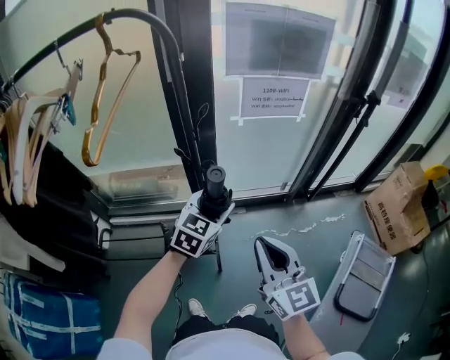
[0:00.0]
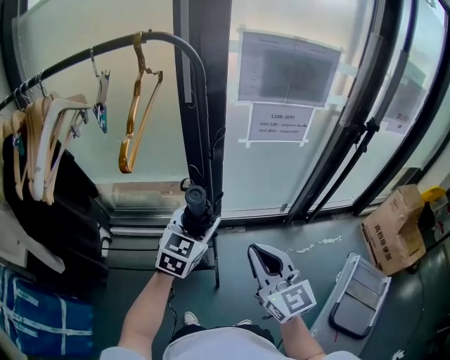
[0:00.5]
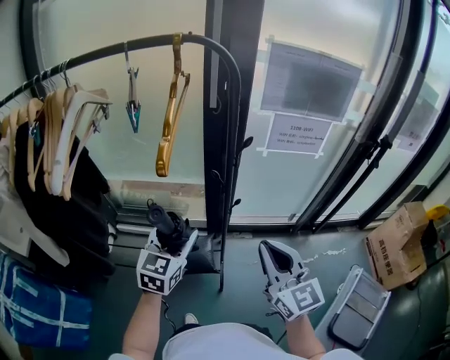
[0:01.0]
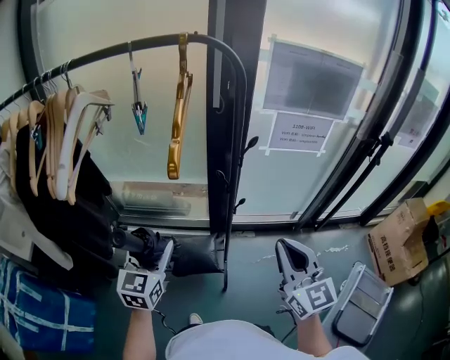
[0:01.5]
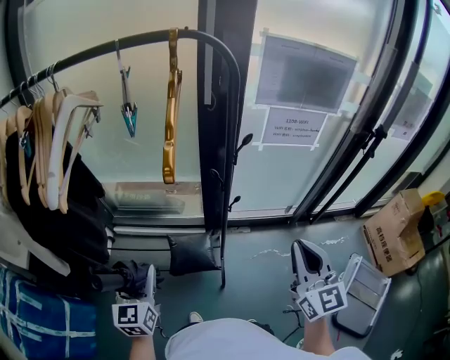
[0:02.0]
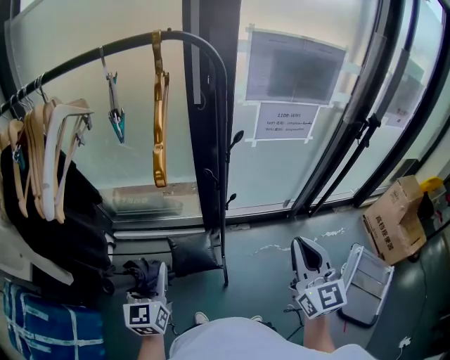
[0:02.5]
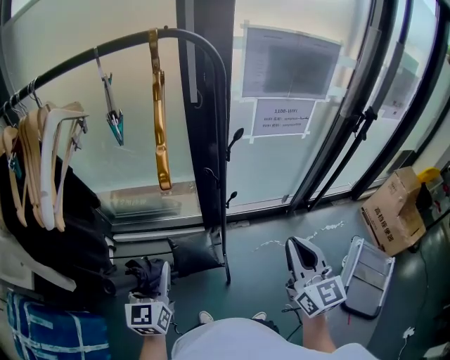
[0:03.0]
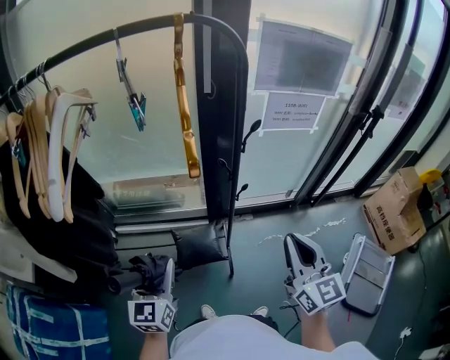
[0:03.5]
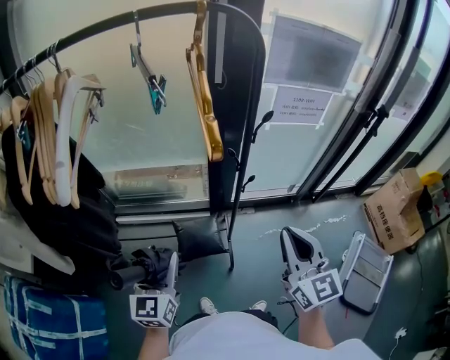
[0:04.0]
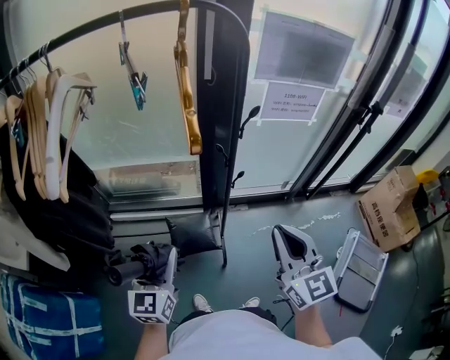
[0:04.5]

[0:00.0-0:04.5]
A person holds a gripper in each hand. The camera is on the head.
0:00.0 to 0:02.0: The left gripper goes some 35 cm to the left and backward, and swivels approximately 40 degrees, while the right gripper moves upward, about 5 cm.
0:02.0 to 0:04.5: The right gripper travels to the left by approximately 10 cm.

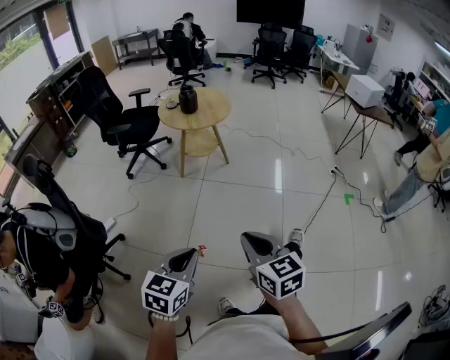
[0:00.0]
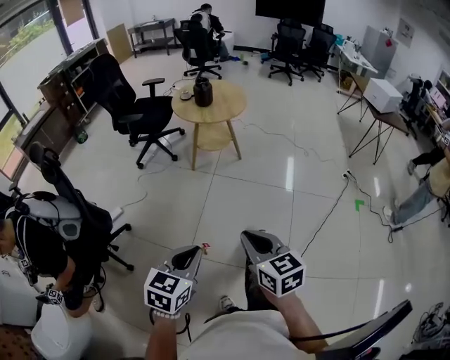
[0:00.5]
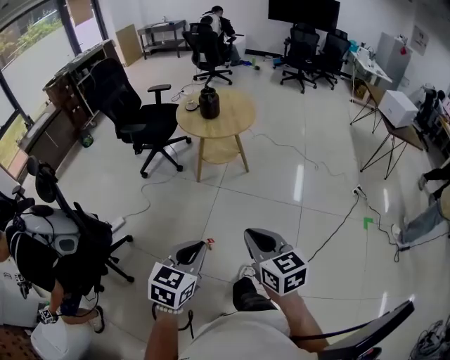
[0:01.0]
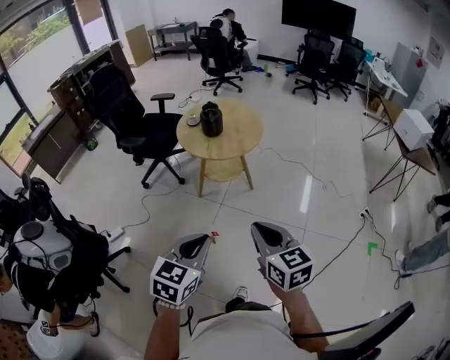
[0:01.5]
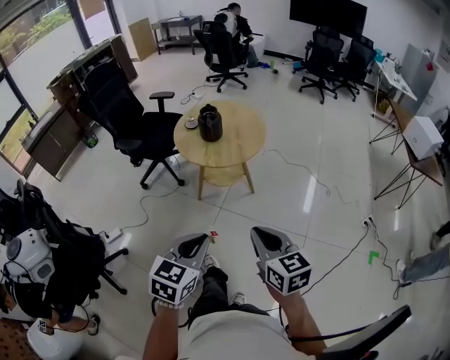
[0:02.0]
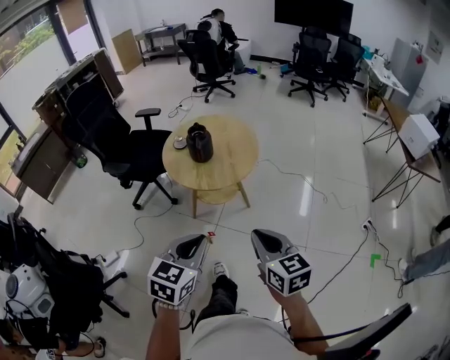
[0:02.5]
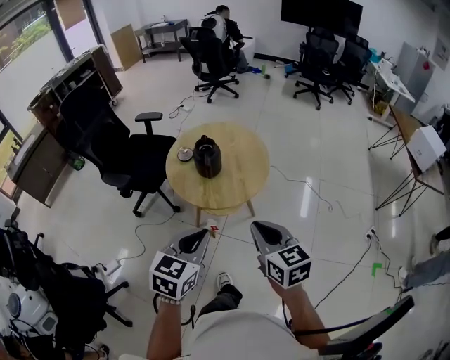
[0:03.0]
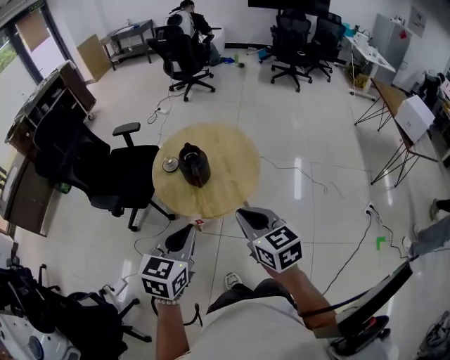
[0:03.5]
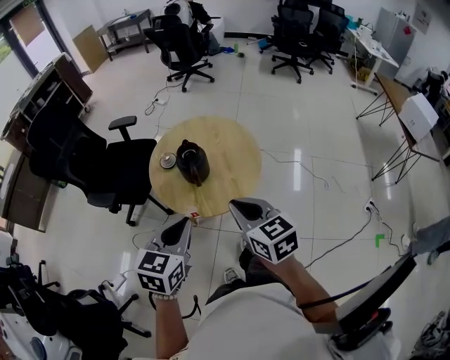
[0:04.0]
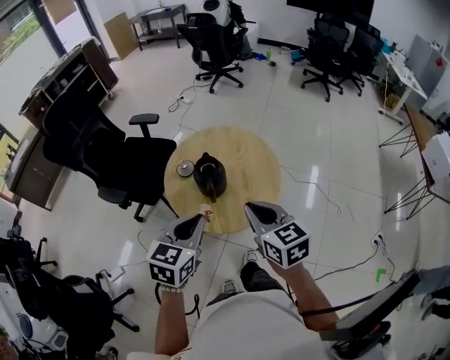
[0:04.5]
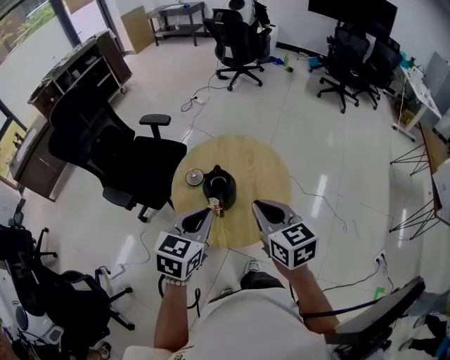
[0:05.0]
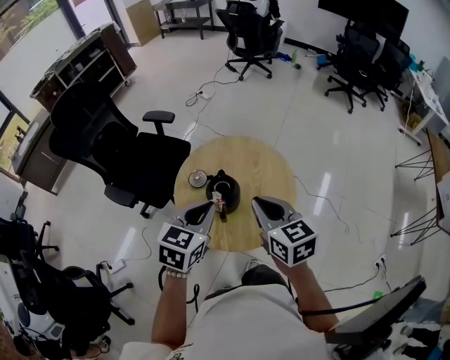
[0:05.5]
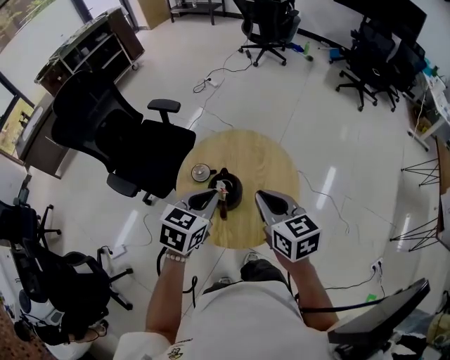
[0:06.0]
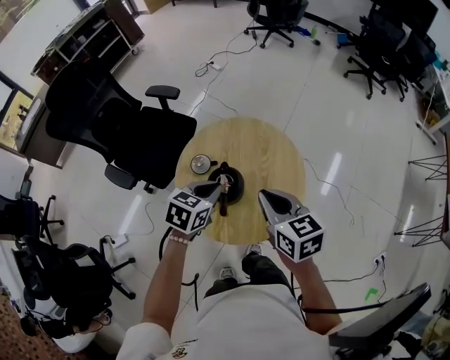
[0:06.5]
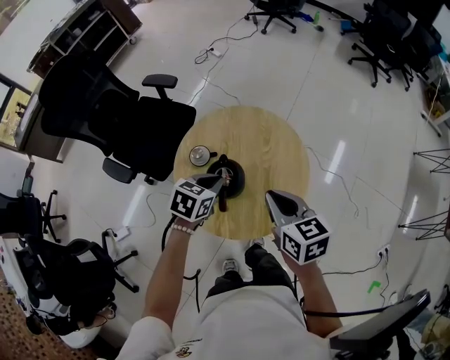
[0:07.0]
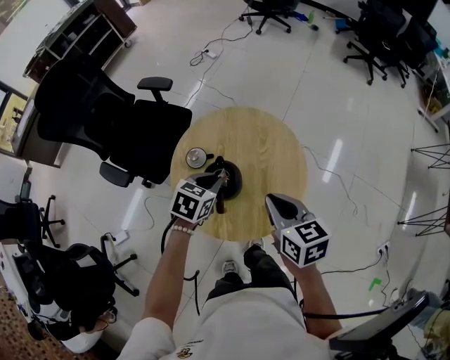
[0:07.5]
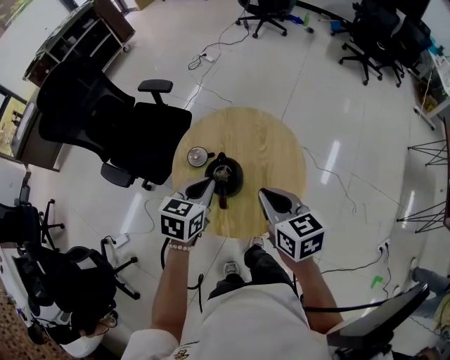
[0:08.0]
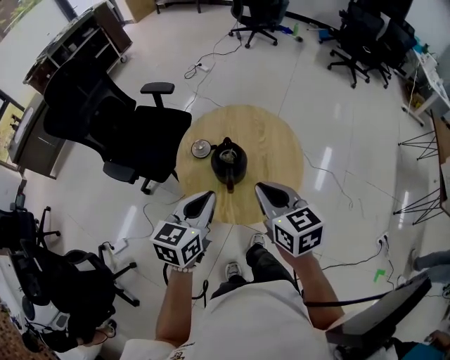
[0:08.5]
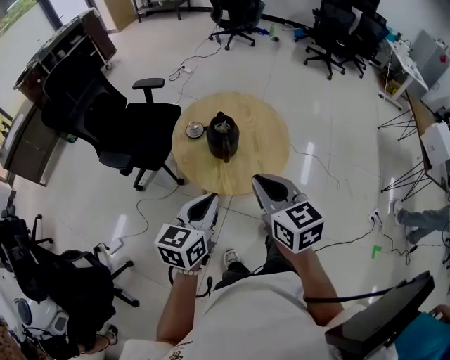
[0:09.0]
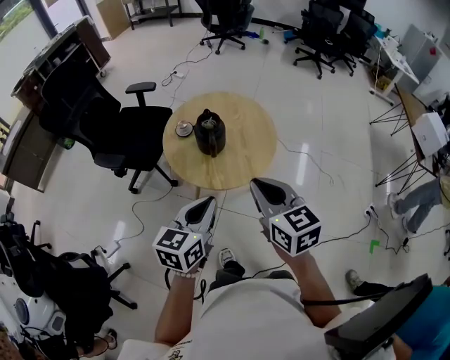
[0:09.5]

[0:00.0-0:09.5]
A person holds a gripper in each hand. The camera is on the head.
0:00.0 to 0:02.0: Both grippers are carried forward, some 40 cm.
0:02.0 to 0:04.0: The two grippers go some 35 cm forward.
0:04.0 to 0:05.5: Both grippers travel together forward, roughly 20 cm.
0:05.5 to 0:07.5: The right gripper moves downward, some 10 cm; the left gripper heads downward and forward, covering approximately 20 cm, and swivels roughly 20 degrees.
0:07.5 to 0:09.5: The left gripper heads backward and upward, covering some 35 cm, and tips its fingers upward by roughly 30 degrees. The right gripper goes roughly 25 cm backward.

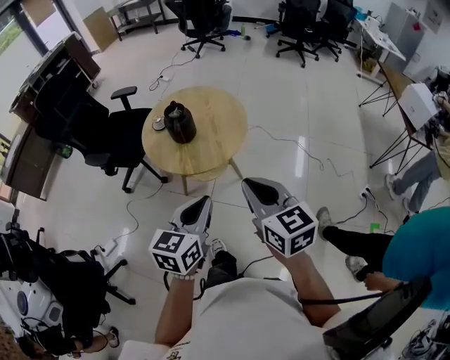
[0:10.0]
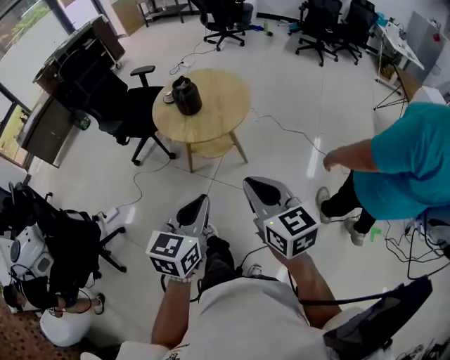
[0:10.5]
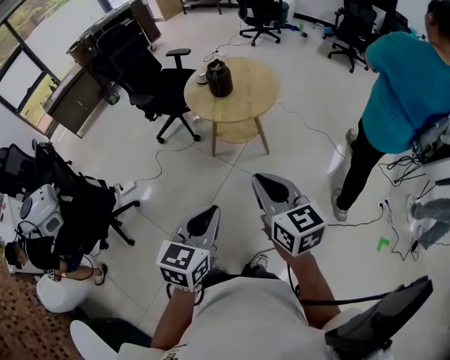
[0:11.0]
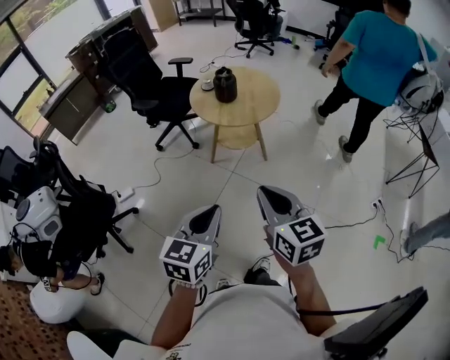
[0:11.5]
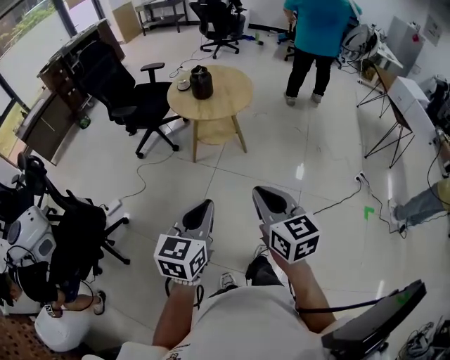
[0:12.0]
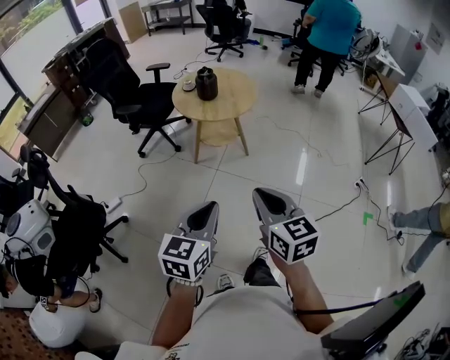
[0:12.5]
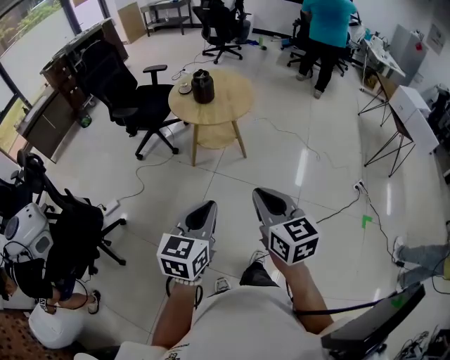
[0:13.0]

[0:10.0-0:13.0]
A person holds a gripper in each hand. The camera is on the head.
0:10.0 to 0:11.5: The two grippers go roughly 30 cm backward.
0:11.5 to 0:13.0: The right gripper travels backward by approximately 5 cm.

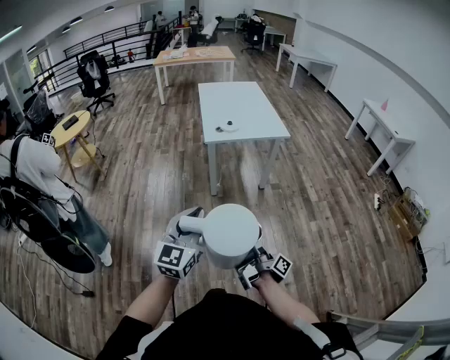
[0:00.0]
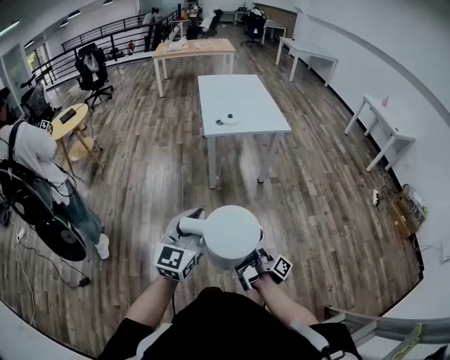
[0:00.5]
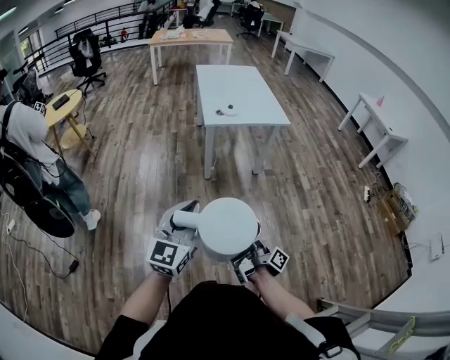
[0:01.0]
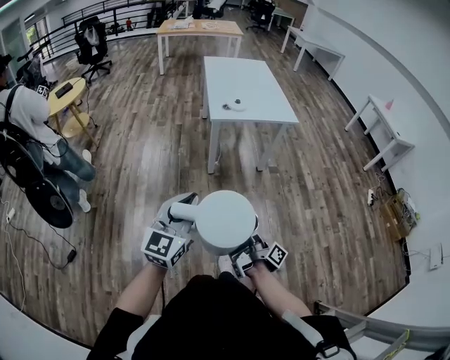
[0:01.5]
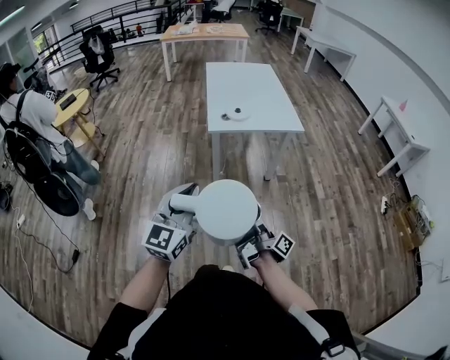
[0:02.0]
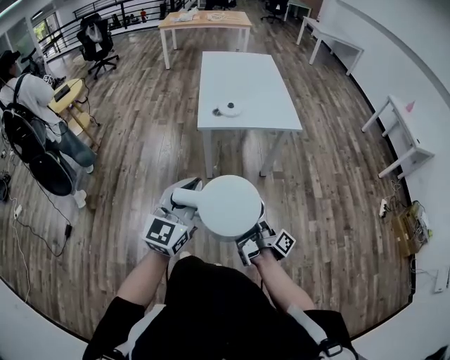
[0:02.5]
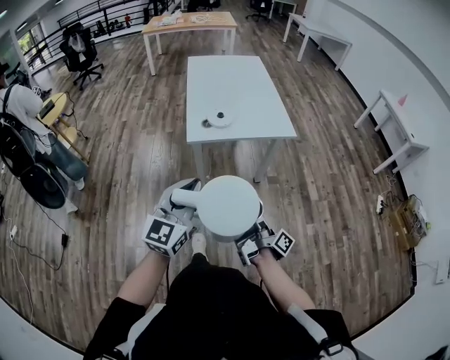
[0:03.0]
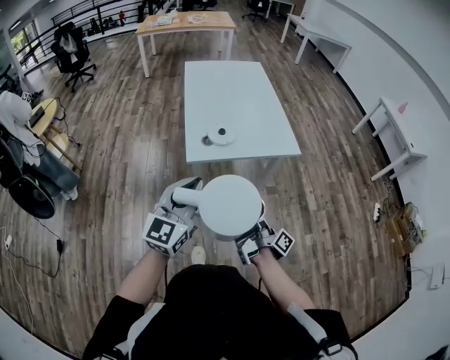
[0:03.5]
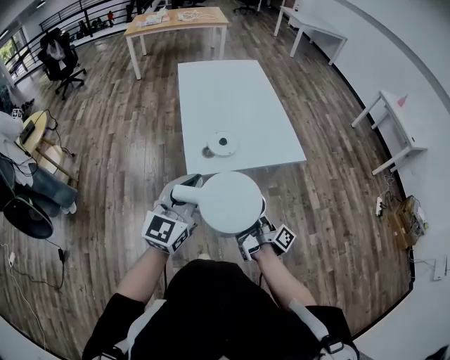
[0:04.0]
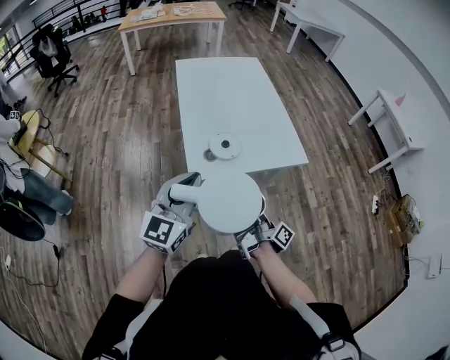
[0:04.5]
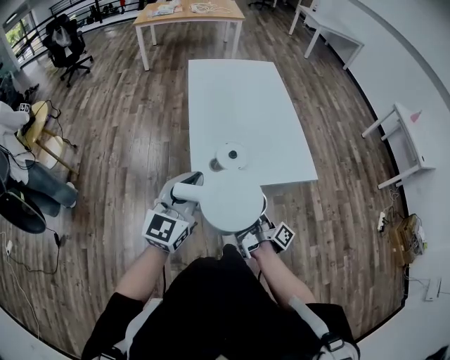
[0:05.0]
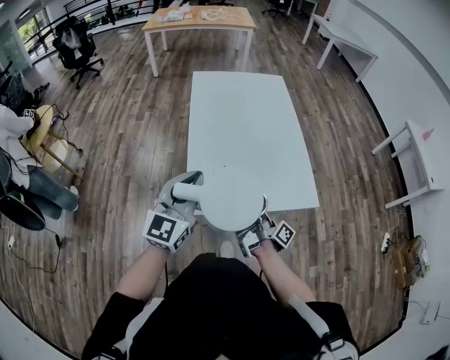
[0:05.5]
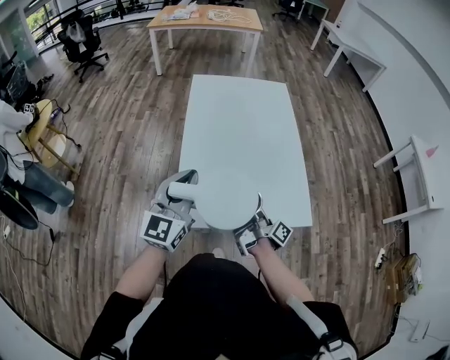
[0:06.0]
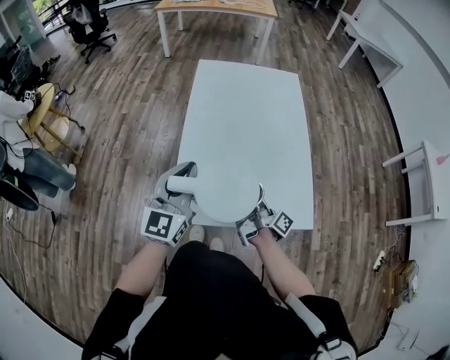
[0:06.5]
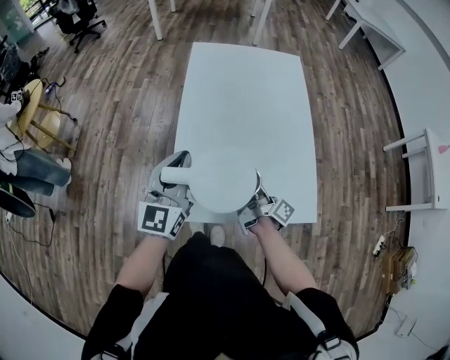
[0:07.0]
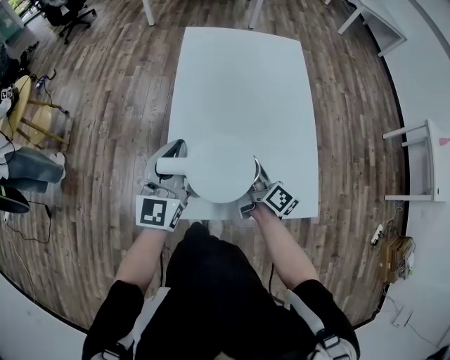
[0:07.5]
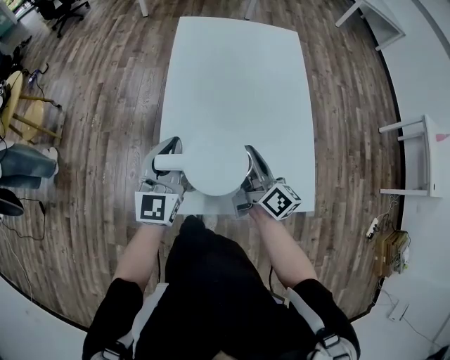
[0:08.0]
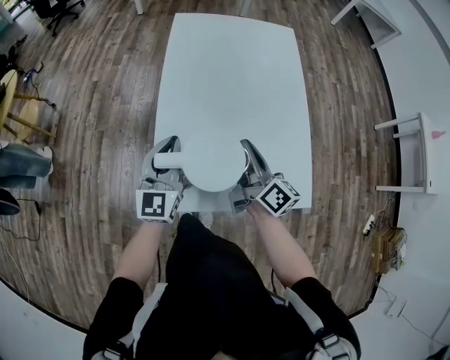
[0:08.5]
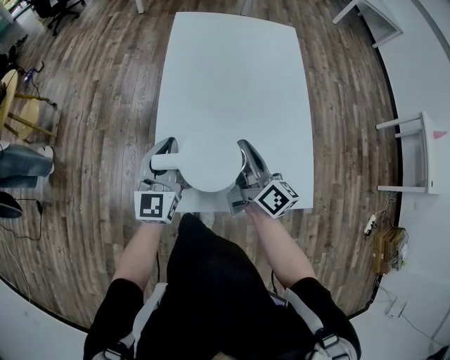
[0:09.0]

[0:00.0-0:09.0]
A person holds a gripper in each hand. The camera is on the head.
0:00.0 to 0:02.0: The left gripper changes place by roughly 10 cm.
0:02.0 to 0:04.5: The left gripper ends up roughly 40 cm from where it was.
0:04.5 to 0:07.0: The left gripper shifts by roughly 25 cm, and rotates some 20 degrees.
0:07.0 to 0:09.0: The left gripper goes approximately 10 cm downward.
